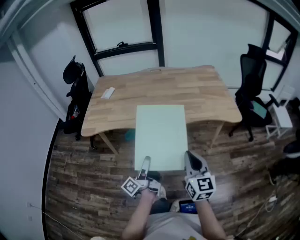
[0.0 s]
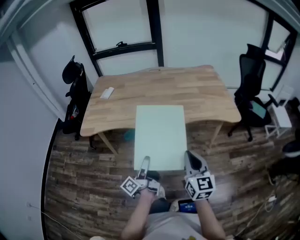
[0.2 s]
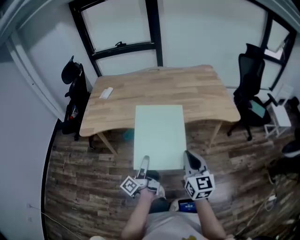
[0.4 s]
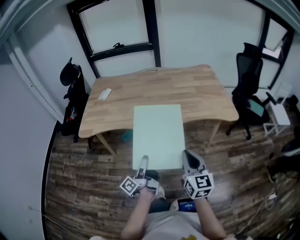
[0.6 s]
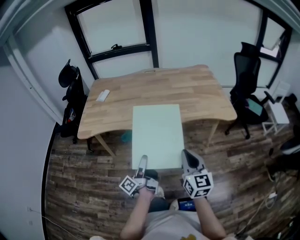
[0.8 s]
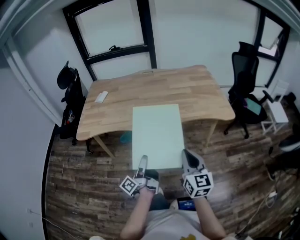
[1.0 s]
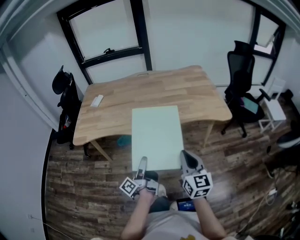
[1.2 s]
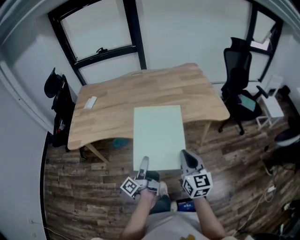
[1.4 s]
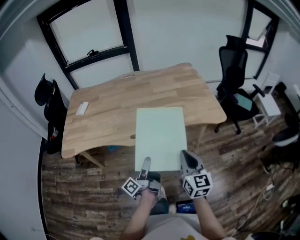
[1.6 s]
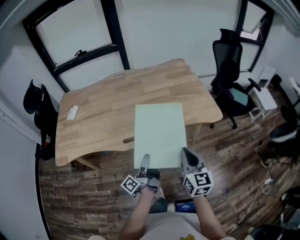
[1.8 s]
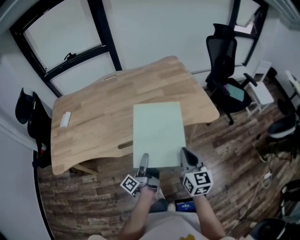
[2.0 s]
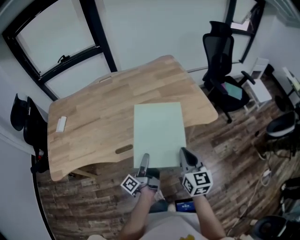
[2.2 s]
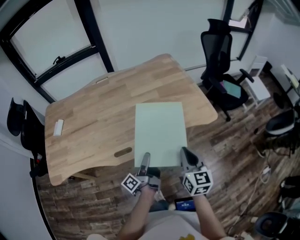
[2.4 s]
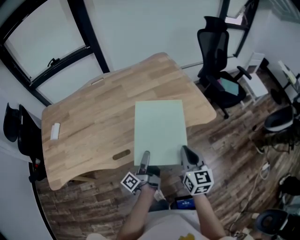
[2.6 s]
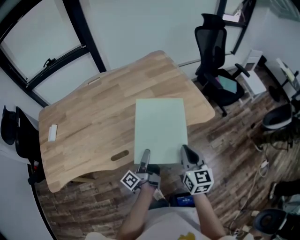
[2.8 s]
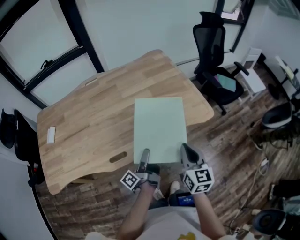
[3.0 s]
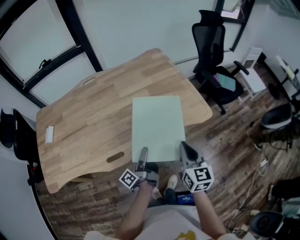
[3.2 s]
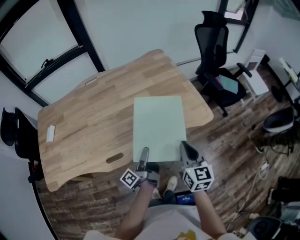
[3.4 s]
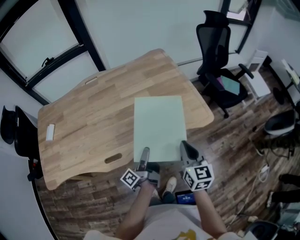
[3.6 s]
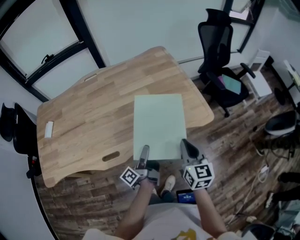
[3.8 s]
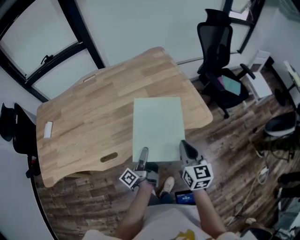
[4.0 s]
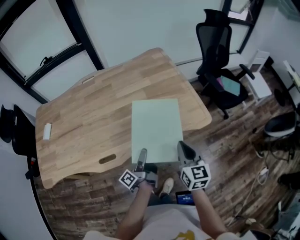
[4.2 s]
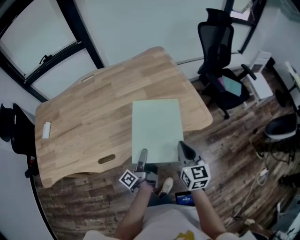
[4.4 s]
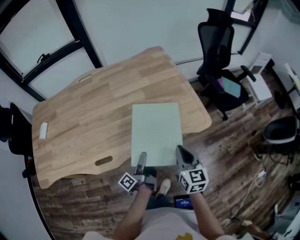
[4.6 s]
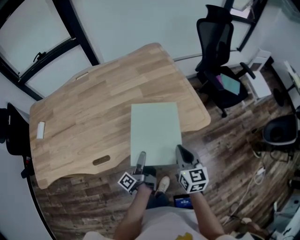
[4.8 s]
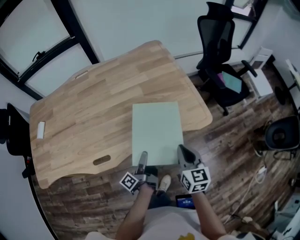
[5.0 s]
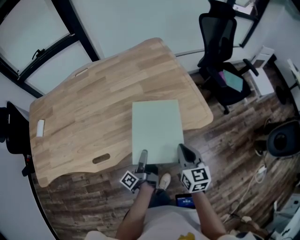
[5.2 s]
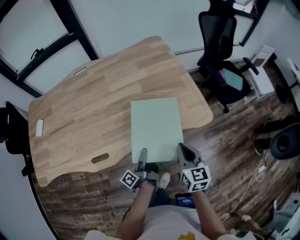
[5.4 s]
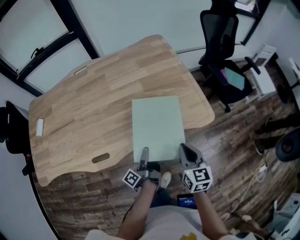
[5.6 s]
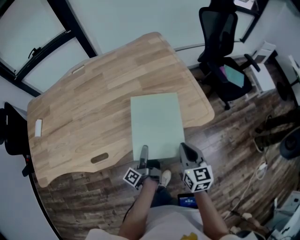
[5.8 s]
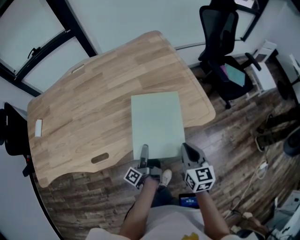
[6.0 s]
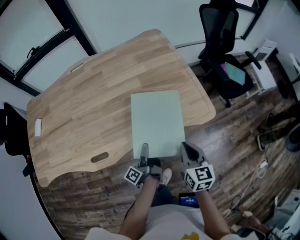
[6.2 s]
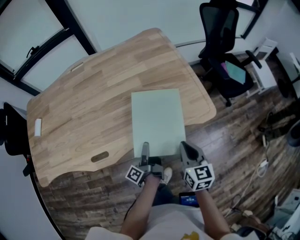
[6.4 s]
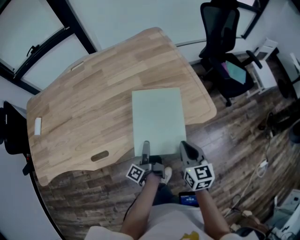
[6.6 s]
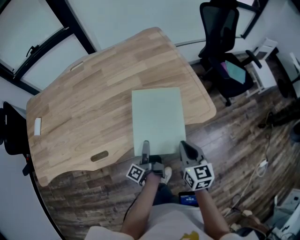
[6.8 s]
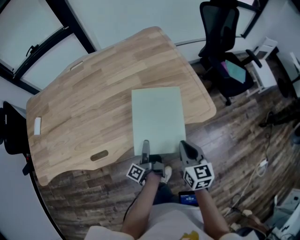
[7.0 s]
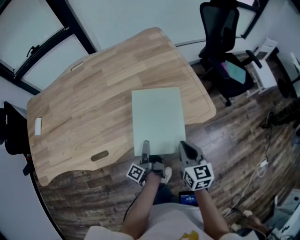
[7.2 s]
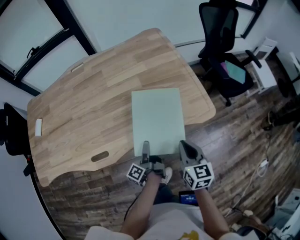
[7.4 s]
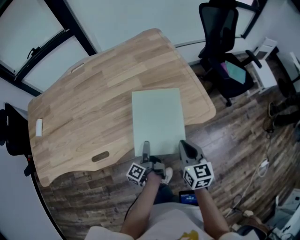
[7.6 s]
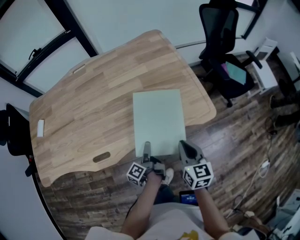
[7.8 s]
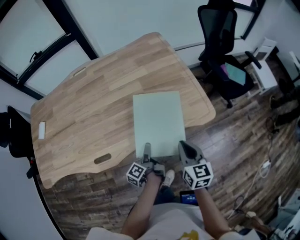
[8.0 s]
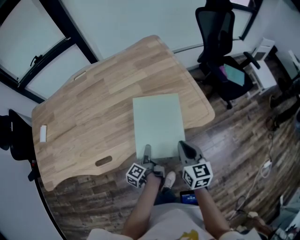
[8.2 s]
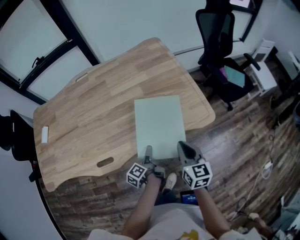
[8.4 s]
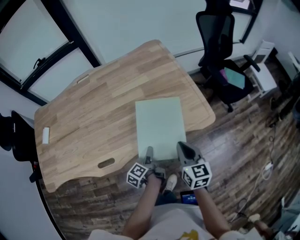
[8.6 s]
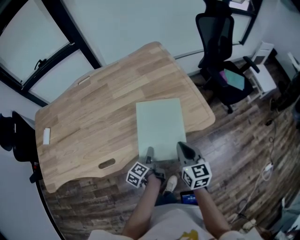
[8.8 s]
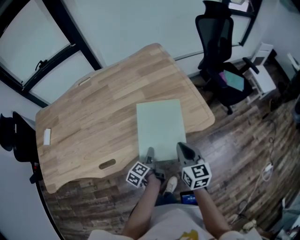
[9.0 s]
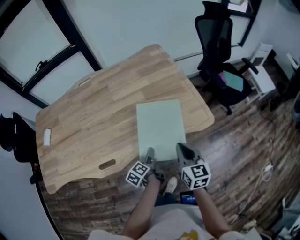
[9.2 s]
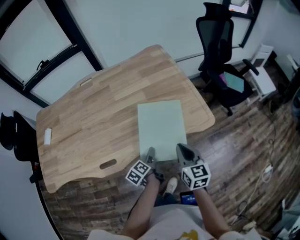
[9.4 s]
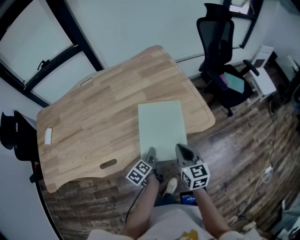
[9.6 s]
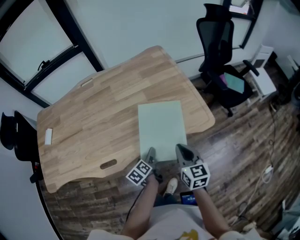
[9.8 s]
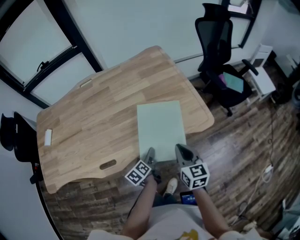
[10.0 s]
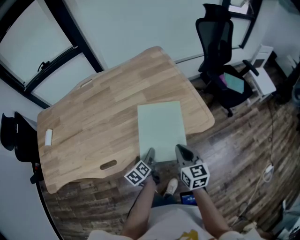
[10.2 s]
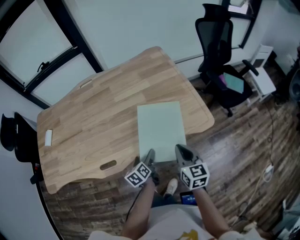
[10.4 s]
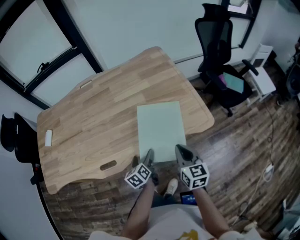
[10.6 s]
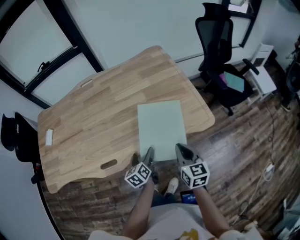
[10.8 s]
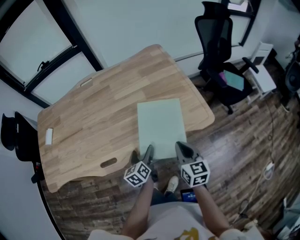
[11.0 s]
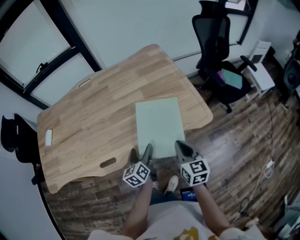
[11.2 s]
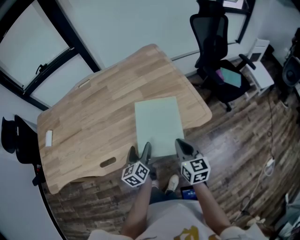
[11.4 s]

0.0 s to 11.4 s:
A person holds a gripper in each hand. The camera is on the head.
0.0 to 1.4 s: The right gripper ends up some 5 cm from where it was.
1.4 to 2.8 s: The right gripper changes place by approximately 20 cm.
2.8 to 4.2 s: The right gripper ends up roughly 10 cm from where it was.
4.2 to 5.6 s: The right gripper goes roughly 5 cm downward.

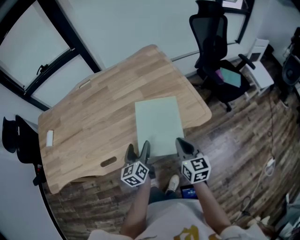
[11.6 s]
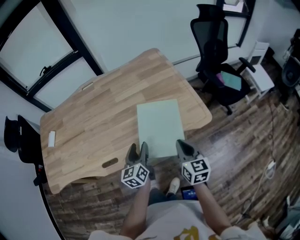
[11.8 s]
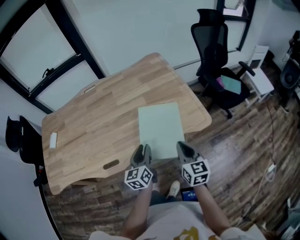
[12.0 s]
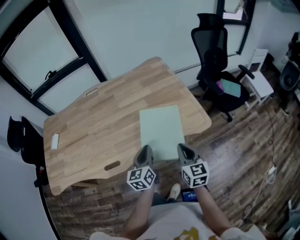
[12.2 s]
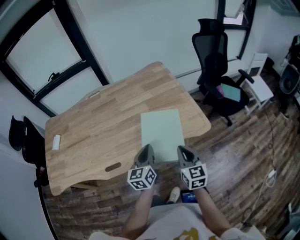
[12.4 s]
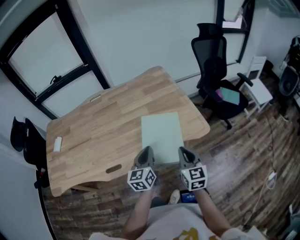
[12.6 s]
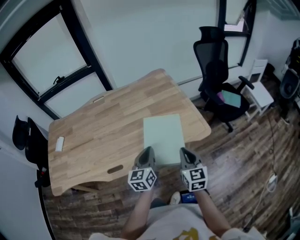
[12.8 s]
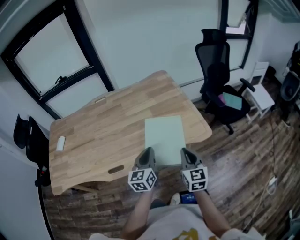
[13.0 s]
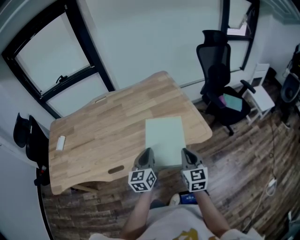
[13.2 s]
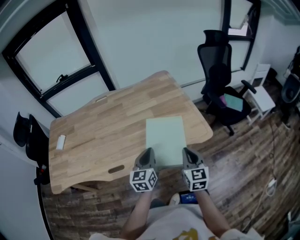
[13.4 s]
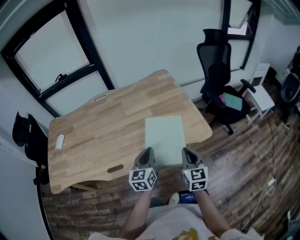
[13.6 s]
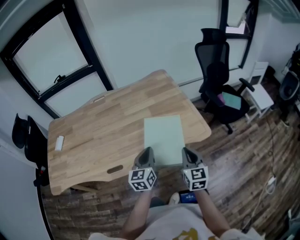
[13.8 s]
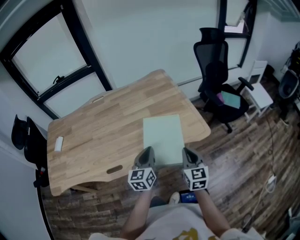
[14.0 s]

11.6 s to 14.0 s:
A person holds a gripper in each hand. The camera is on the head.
11.6 to 12.8 s: The right gripper ends up roughly 5 cm from where it was.

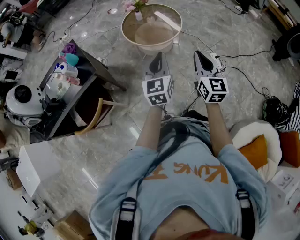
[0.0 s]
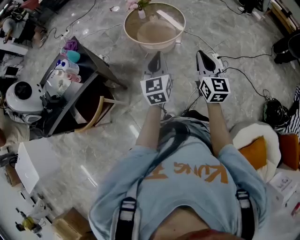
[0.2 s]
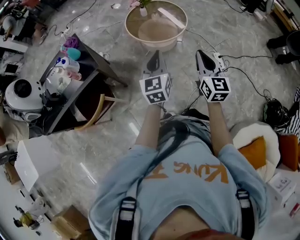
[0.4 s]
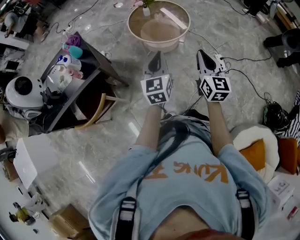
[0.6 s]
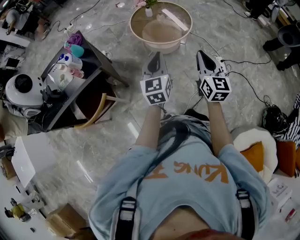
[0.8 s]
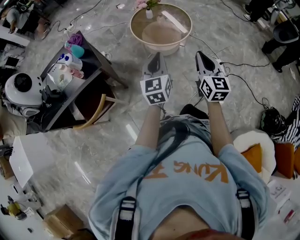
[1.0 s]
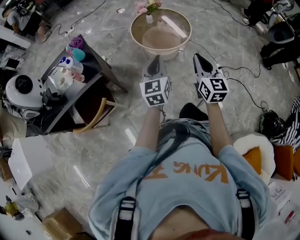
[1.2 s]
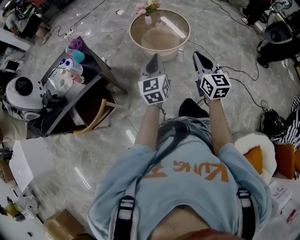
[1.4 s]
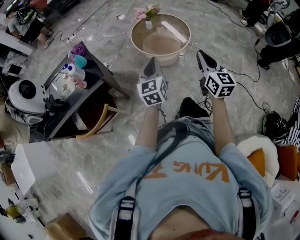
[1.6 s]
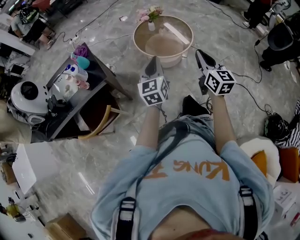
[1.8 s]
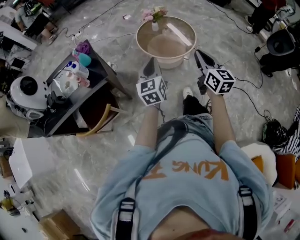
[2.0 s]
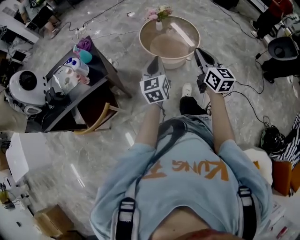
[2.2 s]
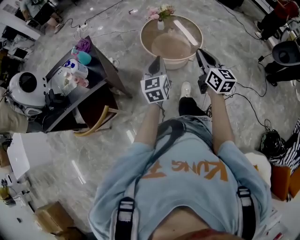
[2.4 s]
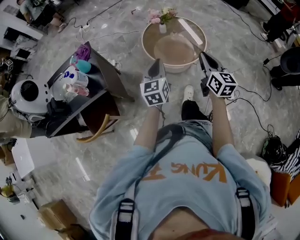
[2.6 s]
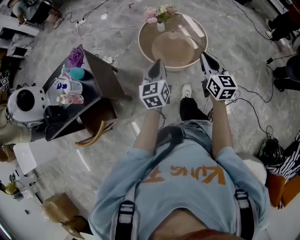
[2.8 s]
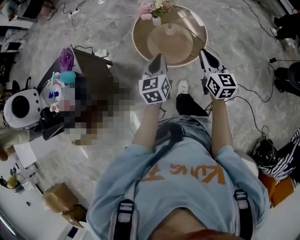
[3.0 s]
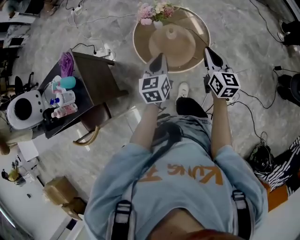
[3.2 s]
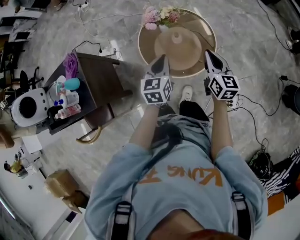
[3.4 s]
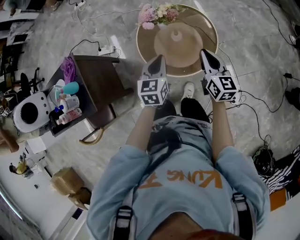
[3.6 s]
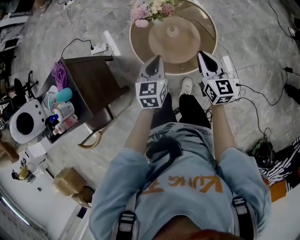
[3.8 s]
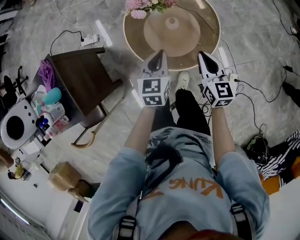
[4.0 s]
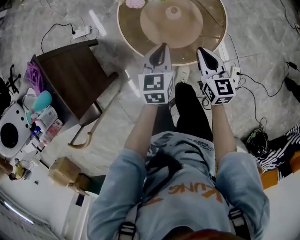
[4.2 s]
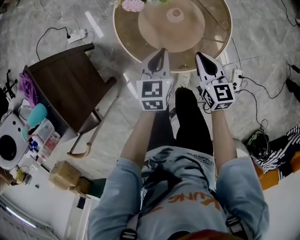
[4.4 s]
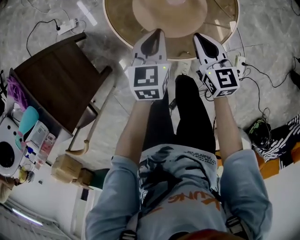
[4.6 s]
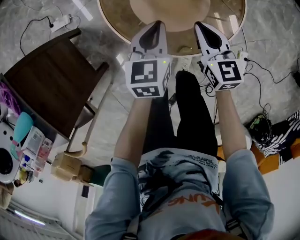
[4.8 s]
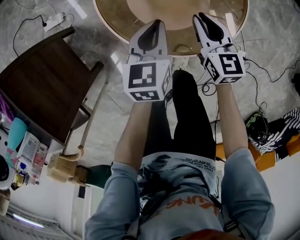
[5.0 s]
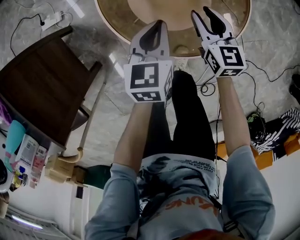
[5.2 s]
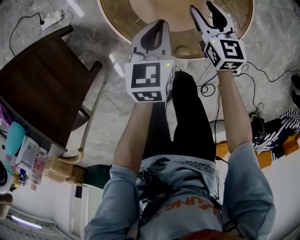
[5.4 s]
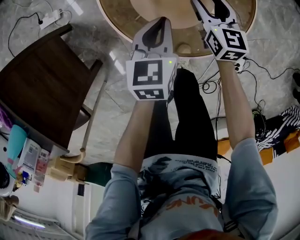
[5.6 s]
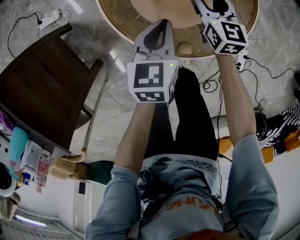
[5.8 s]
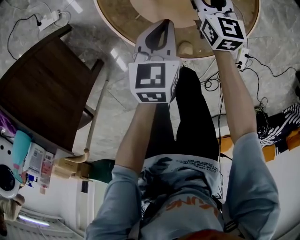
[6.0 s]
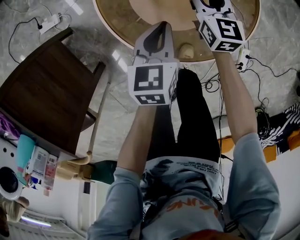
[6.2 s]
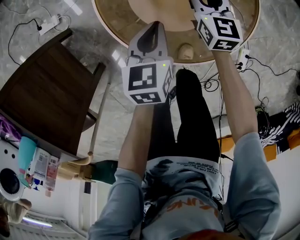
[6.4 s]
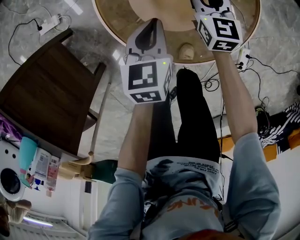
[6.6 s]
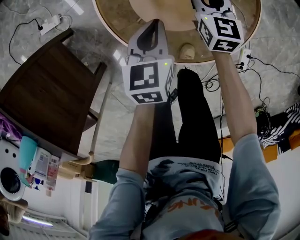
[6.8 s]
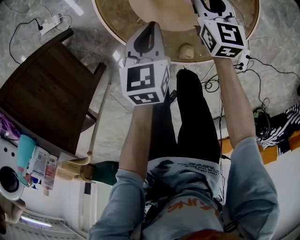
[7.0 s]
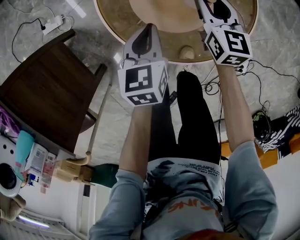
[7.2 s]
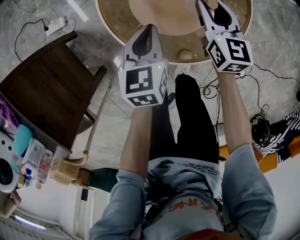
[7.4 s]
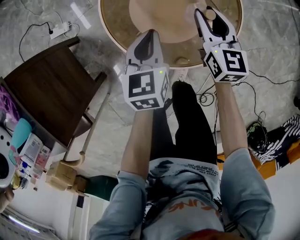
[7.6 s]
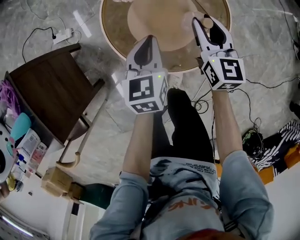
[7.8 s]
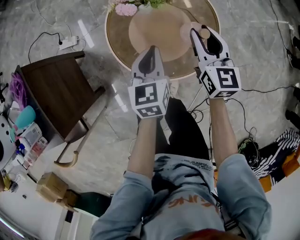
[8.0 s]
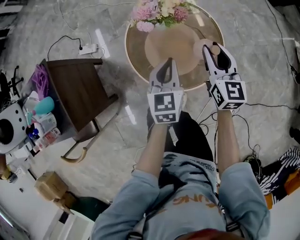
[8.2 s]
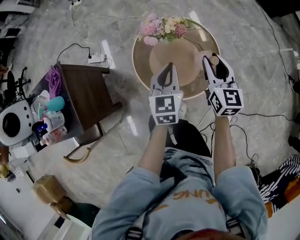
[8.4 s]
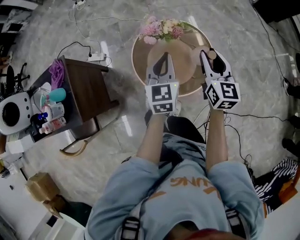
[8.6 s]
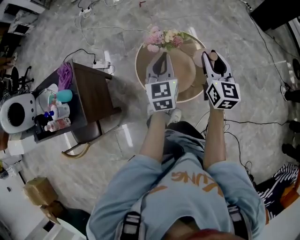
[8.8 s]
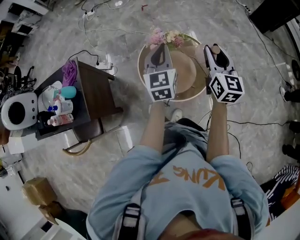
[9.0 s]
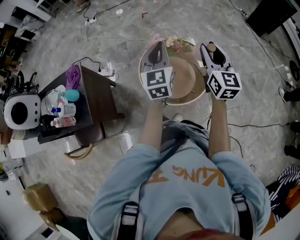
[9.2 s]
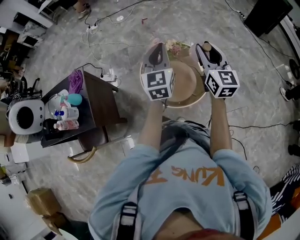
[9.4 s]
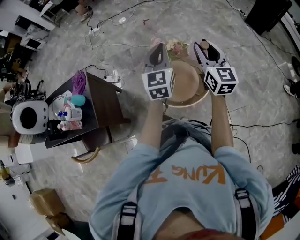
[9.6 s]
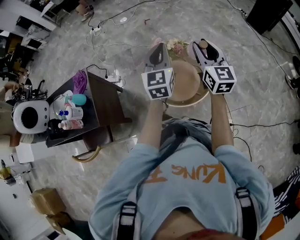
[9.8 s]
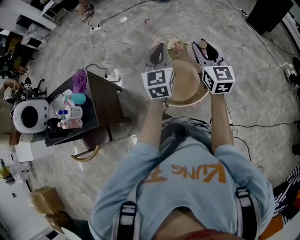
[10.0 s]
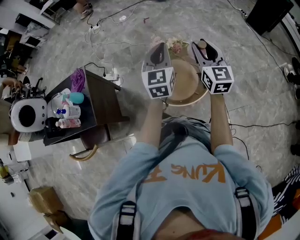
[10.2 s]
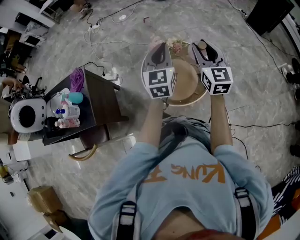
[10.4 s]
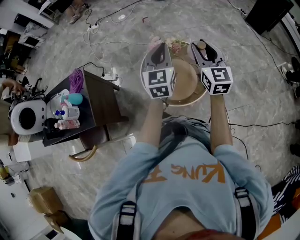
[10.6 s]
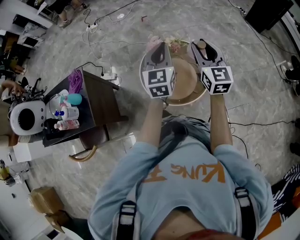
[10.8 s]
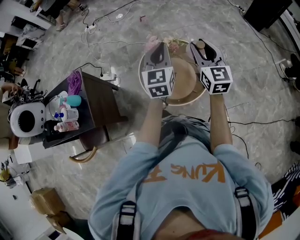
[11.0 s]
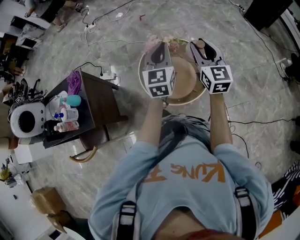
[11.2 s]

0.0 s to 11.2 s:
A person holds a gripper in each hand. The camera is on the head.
0.0 to 1.6 s: The right gripper moves forward, approximately 5 cm, while the left gripper goes some 10 cm to the left.
1.6 to 3.2 s: Both grippers move forward, approximately 40 cm.
3.2 to 4.8 s: The right gripper moves downward, some 35 cm. Meanwhile the left gripper is displaced downward and forward by roughly 35 cm.
4.8 to 6.4 s: The left gripper travels downward by some 5 cm, while the right gripper shifts about 15 cm forward and downward, and opens.
6.4 to 8.0 s: The grippers both shift upward by approximately 20 cm.
8.0 to 9.6 s: Both grippers travel together upward, roughly 35 cm. The left gripper turns by about 30 degrees.
9.6 to 11.2 s: There are only small adjustments of the grippers.
